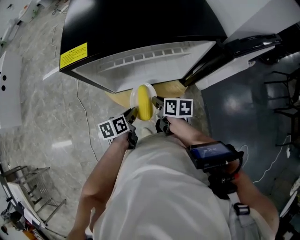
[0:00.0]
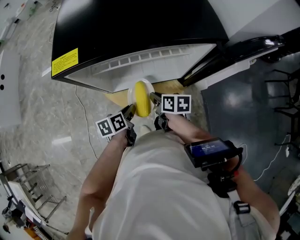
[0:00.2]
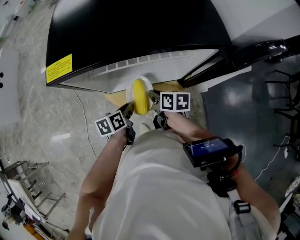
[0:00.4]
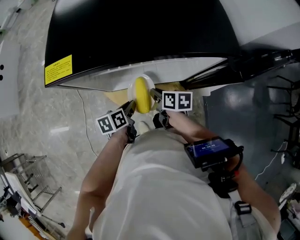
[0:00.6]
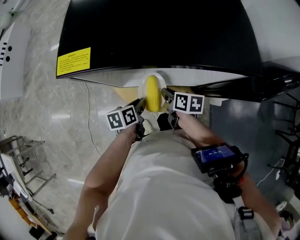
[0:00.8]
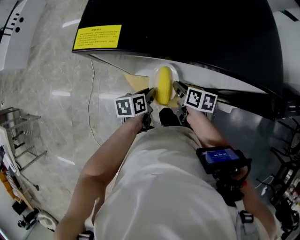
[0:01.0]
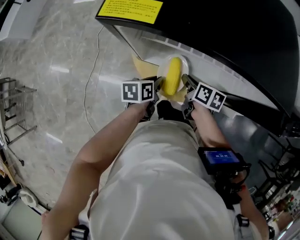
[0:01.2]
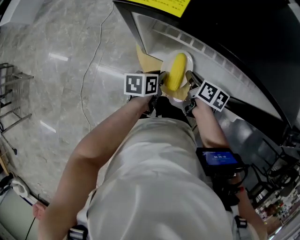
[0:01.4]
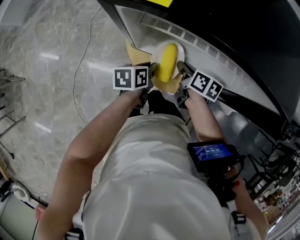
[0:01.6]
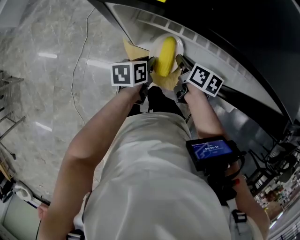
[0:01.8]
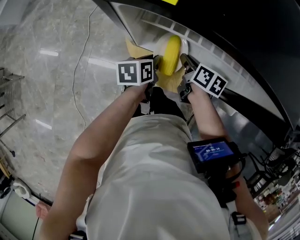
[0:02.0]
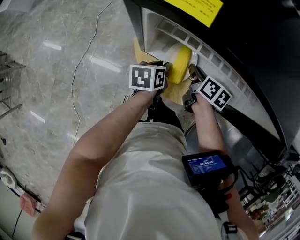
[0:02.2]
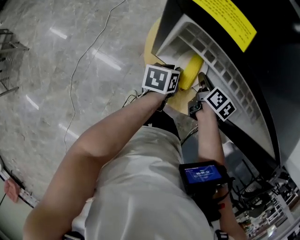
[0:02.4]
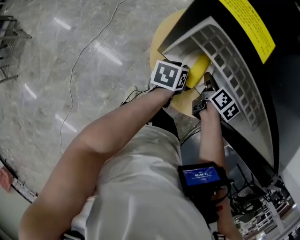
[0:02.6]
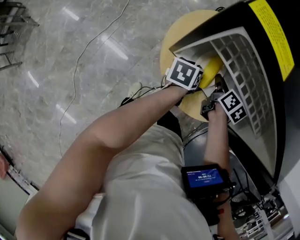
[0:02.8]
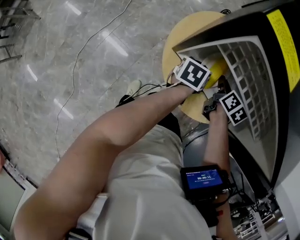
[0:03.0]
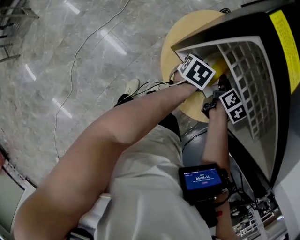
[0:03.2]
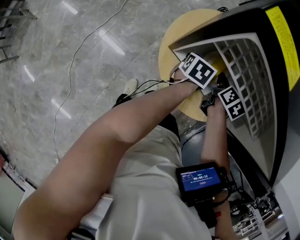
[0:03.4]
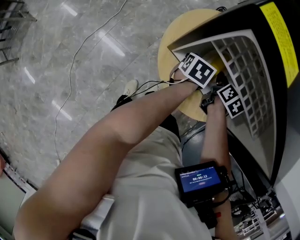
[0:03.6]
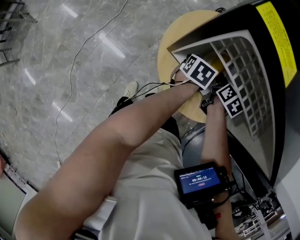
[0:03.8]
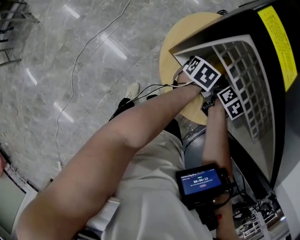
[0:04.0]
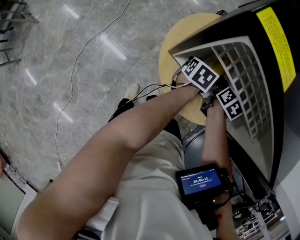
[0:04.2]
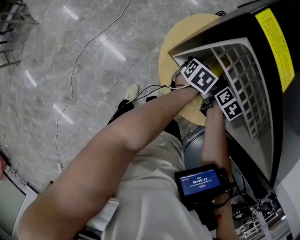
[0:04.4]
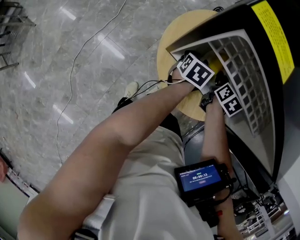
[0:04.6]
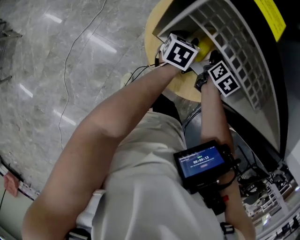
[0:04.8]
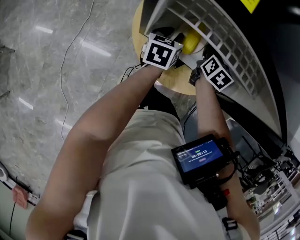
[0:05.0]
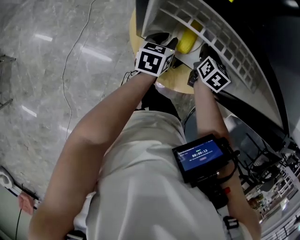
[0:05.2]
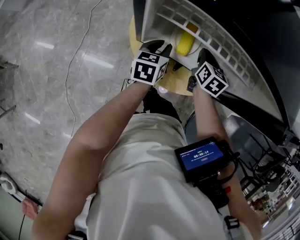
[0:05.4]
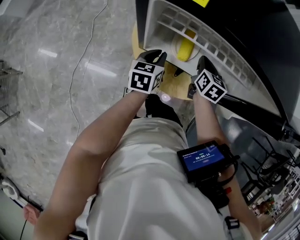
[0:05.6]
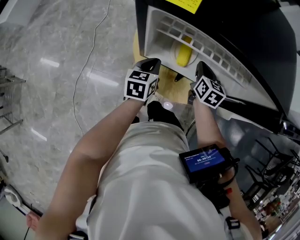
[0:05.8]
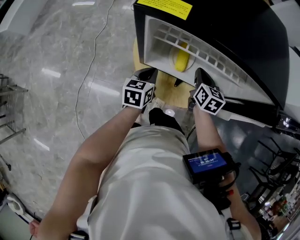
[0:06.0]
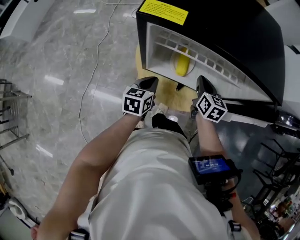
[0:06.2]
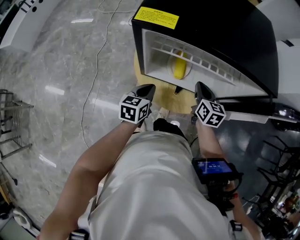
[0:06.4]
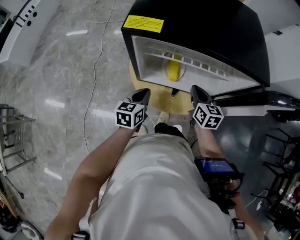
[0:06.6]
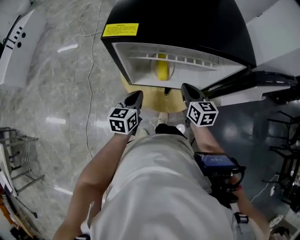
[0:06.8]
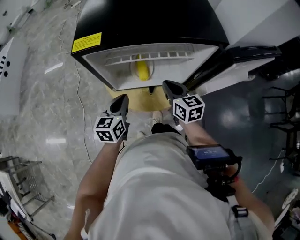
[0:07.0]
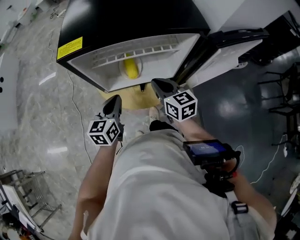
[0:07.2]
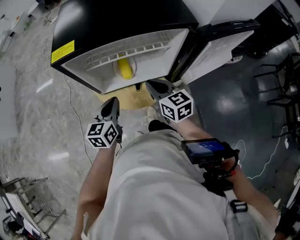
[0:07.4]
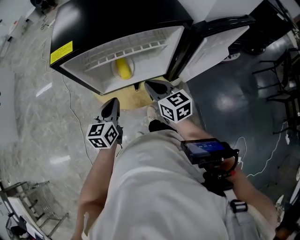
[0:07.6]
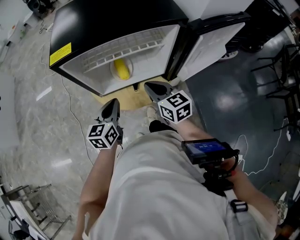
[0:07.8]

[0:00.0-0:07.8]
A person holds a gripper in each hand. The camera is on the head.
0:00.0 to 0:01.6: Both grippers move forward, roughly 10 cm.
0:01.6 to 0:03.2: Both grippers travel together forward, approximately 10 cm. The right gripper changes its angle by approximately 20 degrees.
0:03.2 to 0:04.6: The grippers stay close to where they were, moving slightly.
0:04.6 to 0:06.2: The left gripper shifts some 15 cm backward and upward, and closes up. The right gripper travels upward and backward by roughly 15 cm, and closes.
0:06.2 to 0:07.8: The left gripper heads upward and backward, covering roughly 10 cm, and turns by some 20 degrees, while the right gripper goes roughly 15 cm backward and upward.

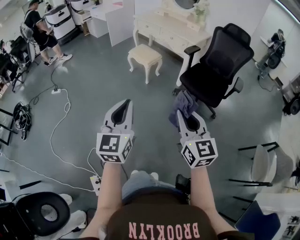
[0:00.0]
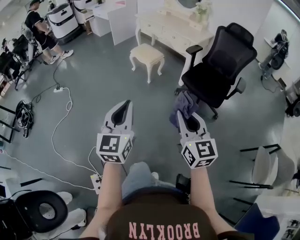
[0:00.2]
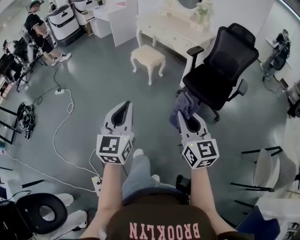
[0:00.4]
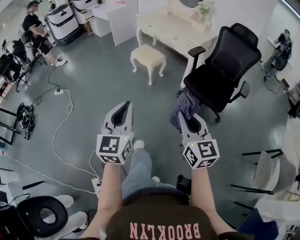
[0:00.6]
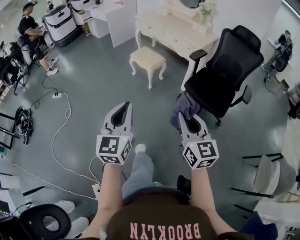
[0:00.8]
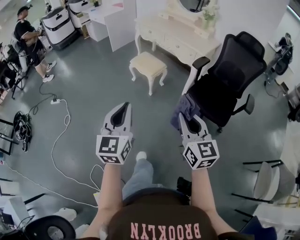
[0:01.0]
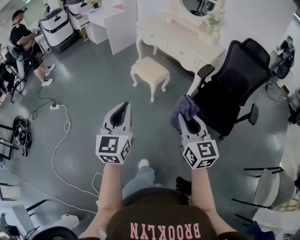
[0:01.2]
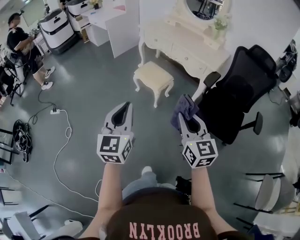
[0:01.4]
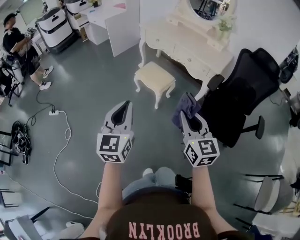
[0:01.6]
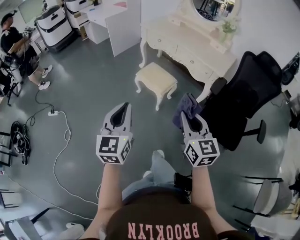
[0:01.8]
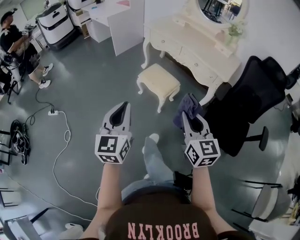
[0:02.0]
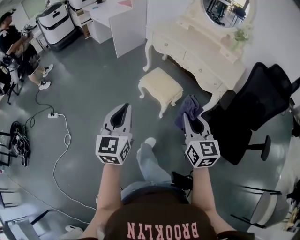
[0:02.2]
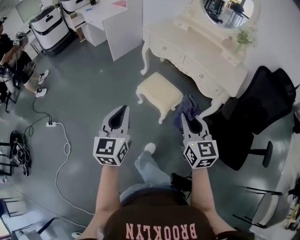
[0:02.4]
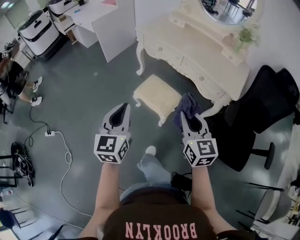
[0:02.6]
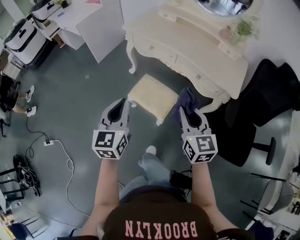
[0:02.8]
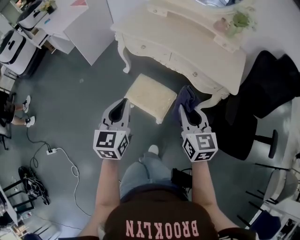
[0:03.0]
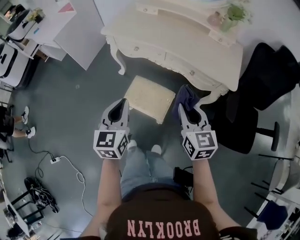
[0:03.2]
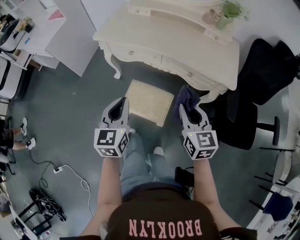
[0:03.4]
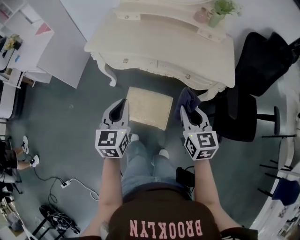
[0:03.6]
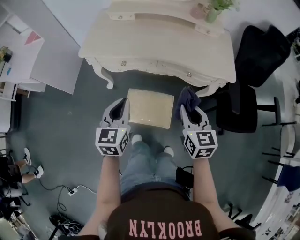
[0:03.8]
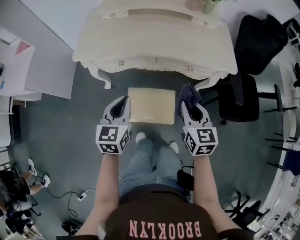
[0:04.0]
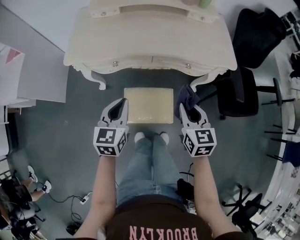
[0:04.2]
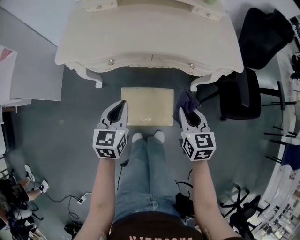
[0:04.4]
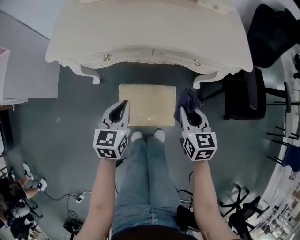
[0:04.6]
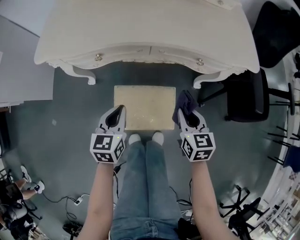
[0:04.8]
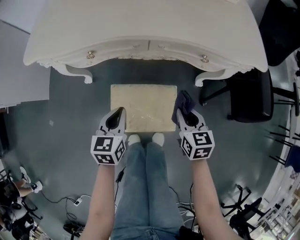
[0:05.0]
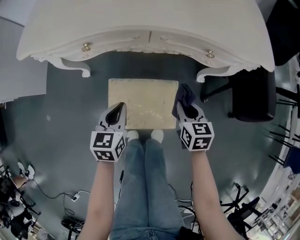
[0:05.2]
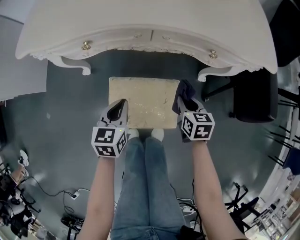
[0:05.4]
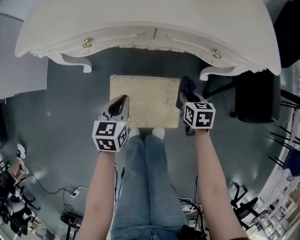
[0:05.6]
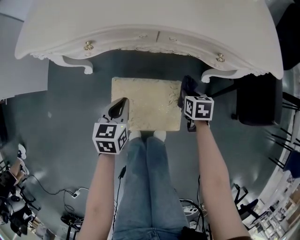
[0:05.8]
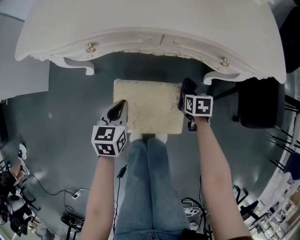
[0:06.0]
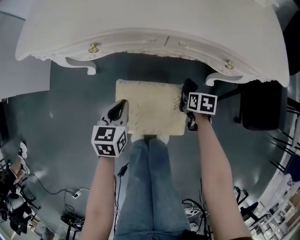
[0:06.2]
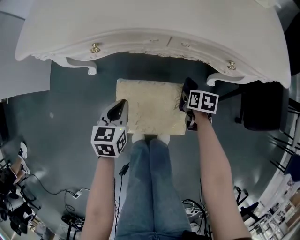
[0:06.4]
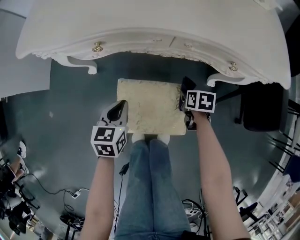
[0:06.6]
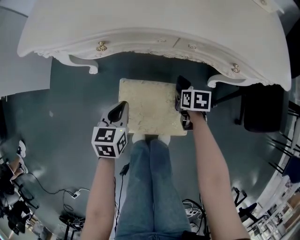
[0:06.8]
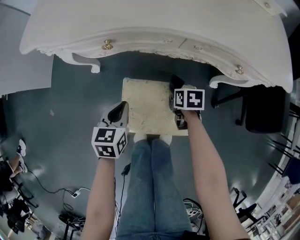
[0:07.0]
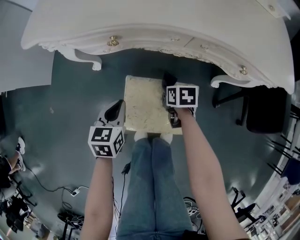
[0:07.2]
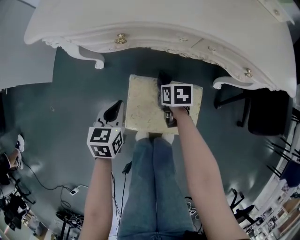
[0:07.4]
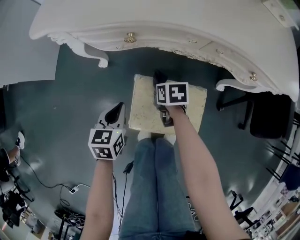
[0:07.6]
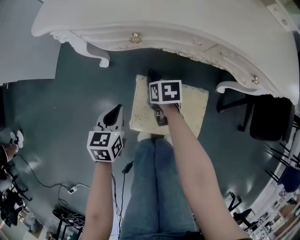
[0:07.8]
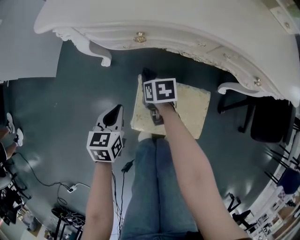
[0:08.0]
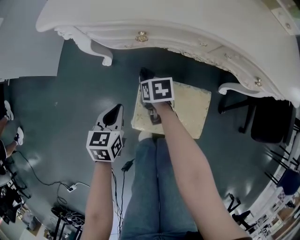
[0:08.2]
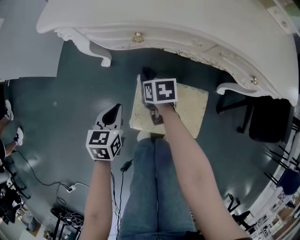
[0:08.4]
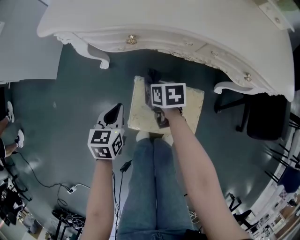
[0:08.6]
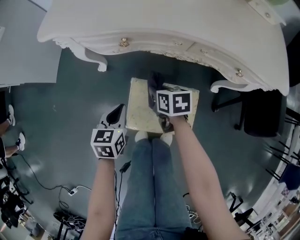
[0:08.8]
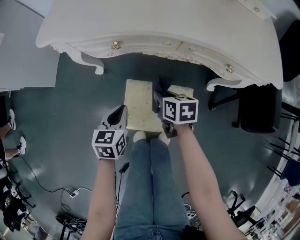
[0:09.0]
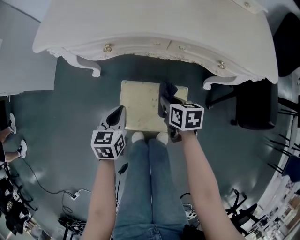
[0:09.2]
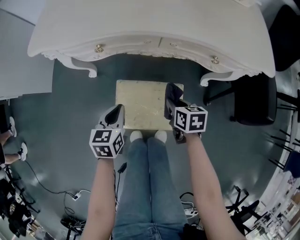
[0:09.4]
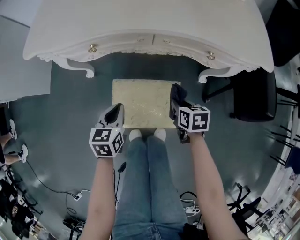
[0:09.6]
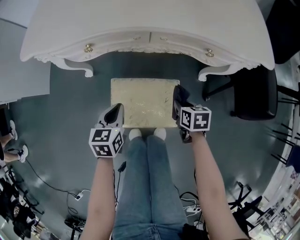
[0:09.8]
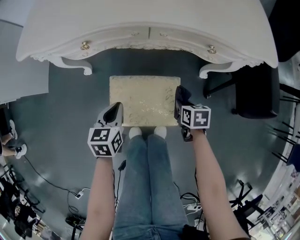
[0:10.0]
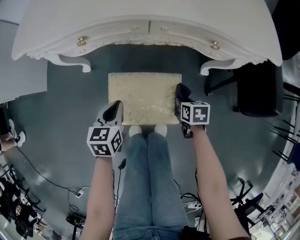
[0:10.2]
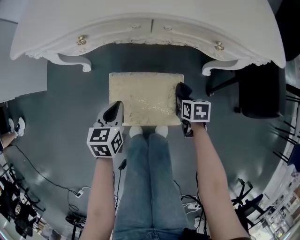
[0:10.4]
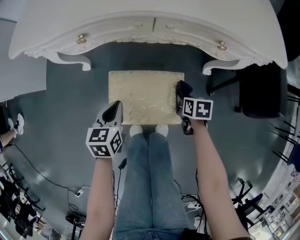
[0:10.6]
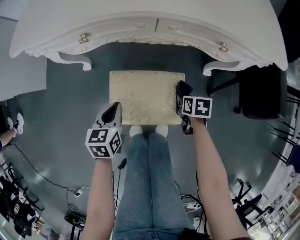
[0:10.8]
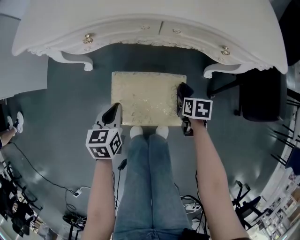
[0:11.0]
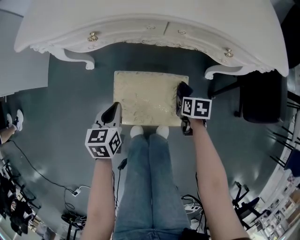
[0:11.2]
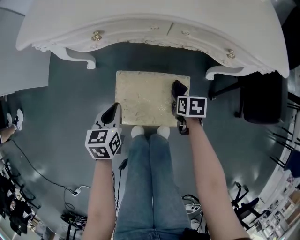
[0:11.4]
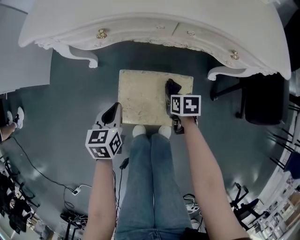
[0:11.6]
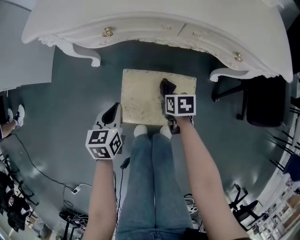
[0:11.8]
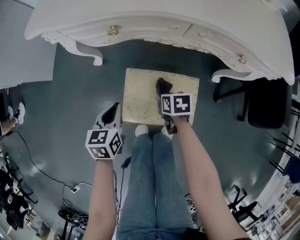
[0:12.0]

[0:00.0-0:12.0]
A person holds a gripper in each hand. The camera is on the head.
0:00.0 to 0:01.6: The pair of grippers is taken forward, roughly 40 cm.
0:01.6 to 0:03.0: The two grippers travel together, forward, approximately 50 cm.
0:03.0 to 0:04.4: The right gripper heads downward, covering roughly 15 cm, and swivels roughly 40 degrees; the left gripper shifts by approximately 30 cm, and rotates about 40 degrees.
0:04.4 to 0:06.0: Both grippers move downward, approximately 30 cm. The right gripper tips its fingers downward by roughly 40 degrees.
0:06.0 to 0:07.6: The left gripper shifts approximately 10 cm to the left; the right gripper is displaced to the left by roughly 25 cm.
0:07.6 to 0:09.0: The right gripper moves upward, about 10 cm; the left gripper changes place by about 5 cm.
0:09.0 to 0:10.4: The right gripper shifts some 25 cm to the right, downward and backward. The left gripper heads to the right, covering approximately 5 cm.
0:10.4 to 0:12.0: The left gripper shifts roughly 10 cm to the left, while the right gripper moves to the left, some 15 cm.

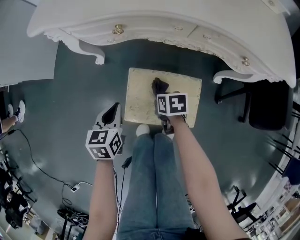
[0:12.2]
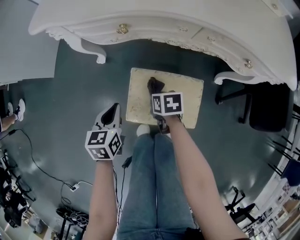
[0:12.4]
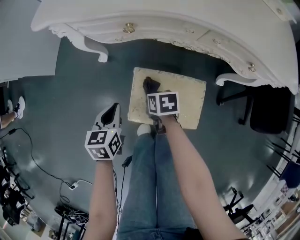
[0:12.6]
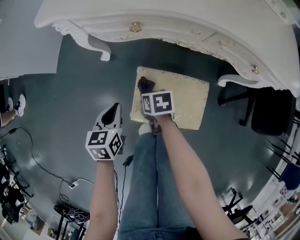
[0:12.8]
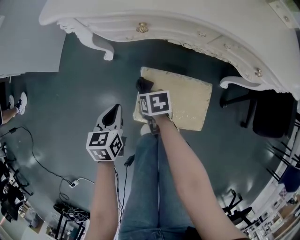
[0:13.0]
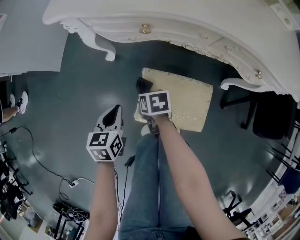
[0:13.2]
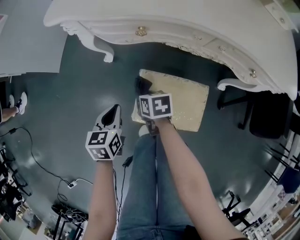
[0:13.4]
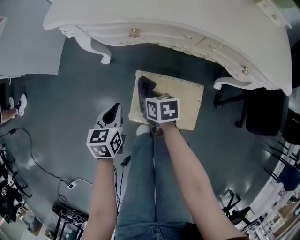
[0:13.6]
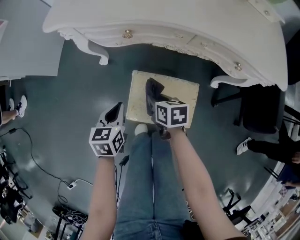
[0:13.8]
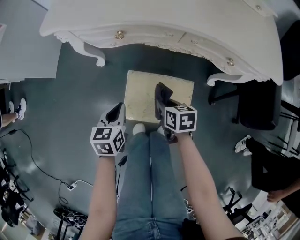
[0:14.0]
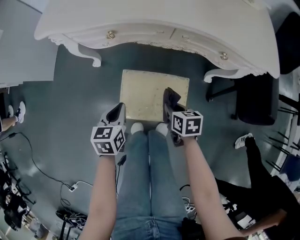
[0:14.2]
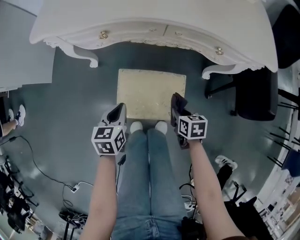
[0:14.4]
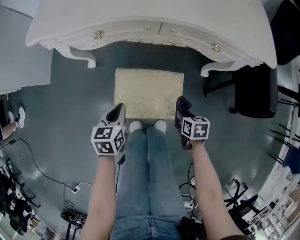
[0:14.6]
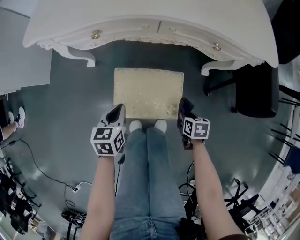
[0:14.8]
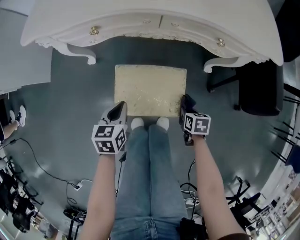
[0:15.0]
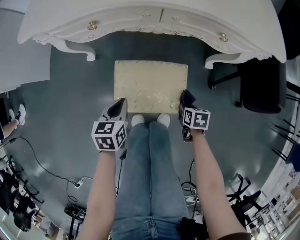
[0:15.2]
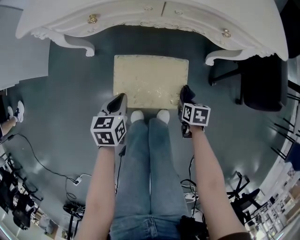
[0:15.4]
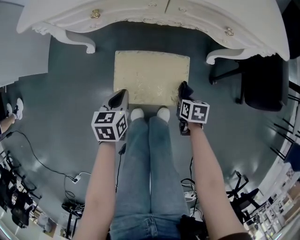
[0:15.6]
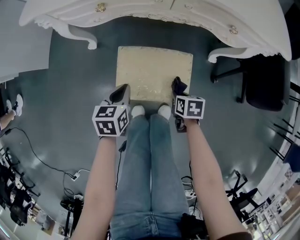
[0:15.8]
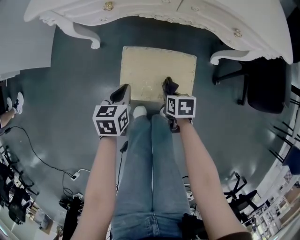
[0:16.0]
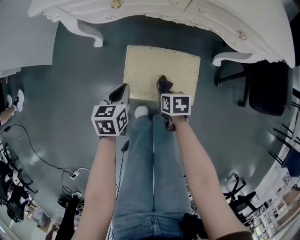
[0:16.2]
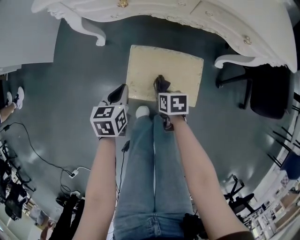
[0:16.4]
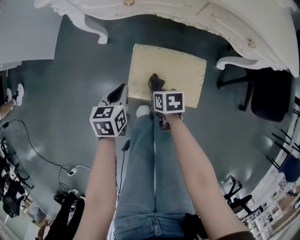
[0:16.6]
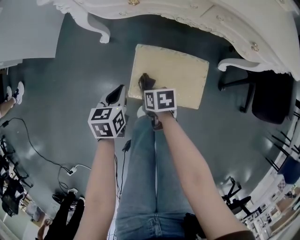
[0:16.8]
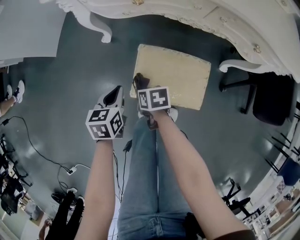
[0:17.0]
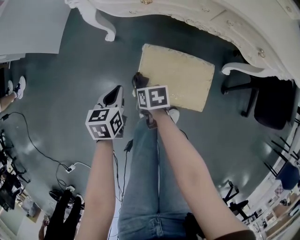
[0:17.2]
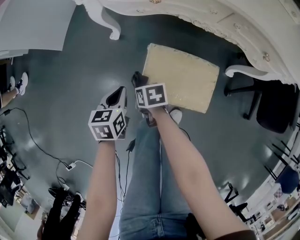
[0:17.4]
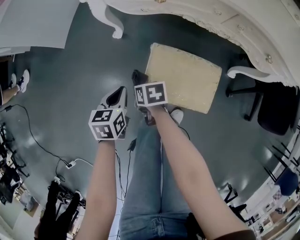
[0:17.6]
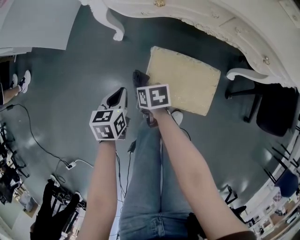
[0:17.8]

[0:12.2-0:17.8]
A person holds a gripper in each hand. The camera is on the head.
0:12.2 to 0:13.6: The right gripper heads to the left and upward, covering approximately 10 cm.
0:13.6 to 0:15.0: The left gripper goes about 10 cm to the right. Meanwhile the right gripper is displaced to the right and backward by approximately 35 cm, and rotates about 30 degrees.
0:15.0 to 0:16.4: The right gripper moves to the left, approximately 20 cm. Meanwhile the left gripper is displaced to the left by roughly 5 cm.
0:16.4 to 0:17.8: The right gripper goes some 15 cm to the left and forward. The left gripper travels to the left by about 10 cm.
